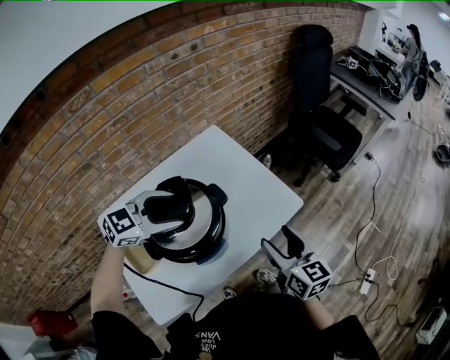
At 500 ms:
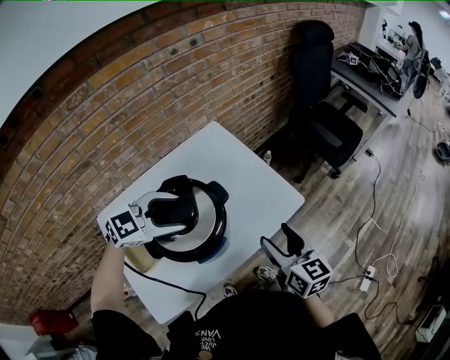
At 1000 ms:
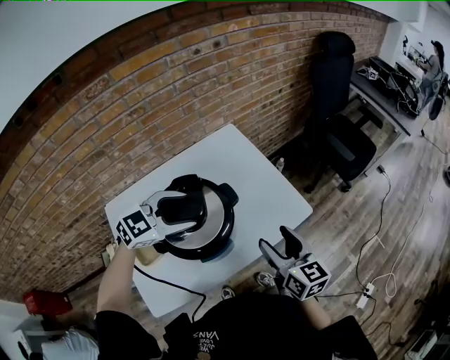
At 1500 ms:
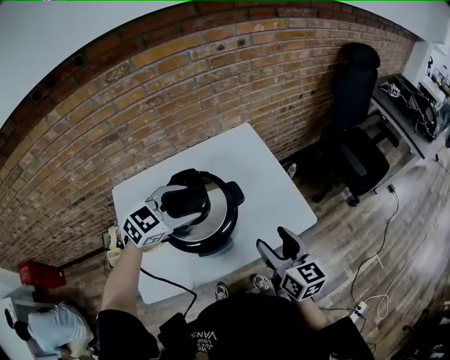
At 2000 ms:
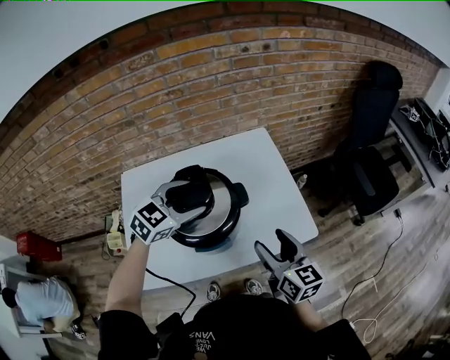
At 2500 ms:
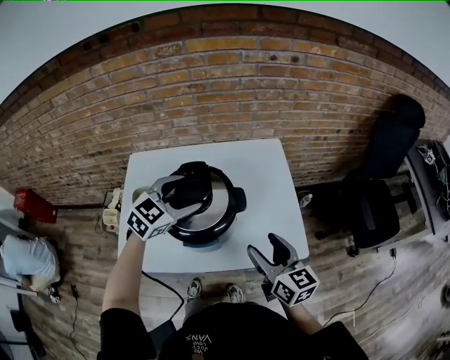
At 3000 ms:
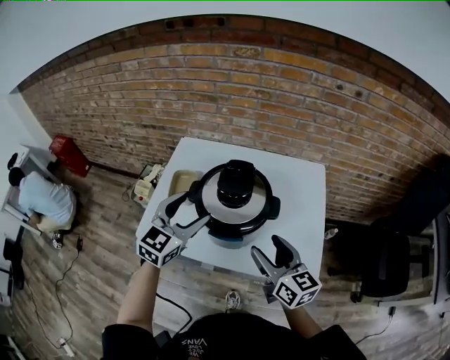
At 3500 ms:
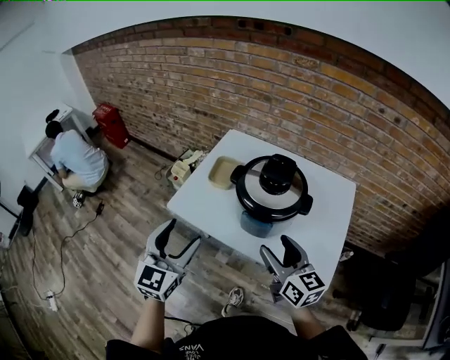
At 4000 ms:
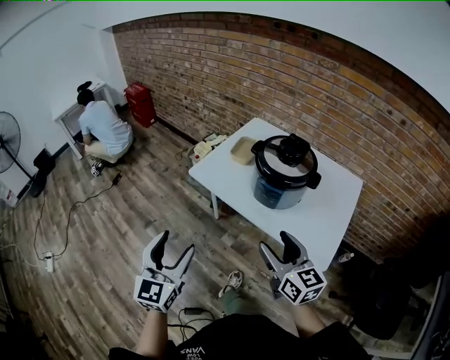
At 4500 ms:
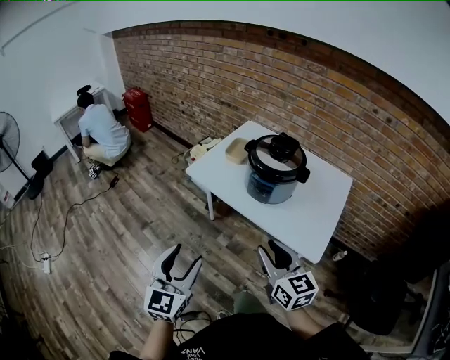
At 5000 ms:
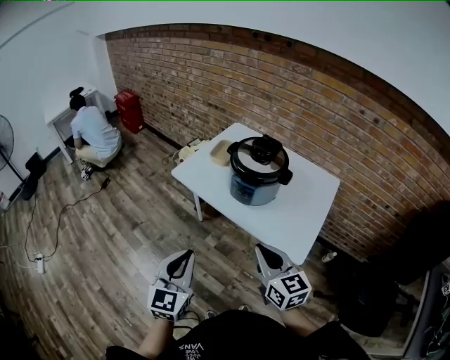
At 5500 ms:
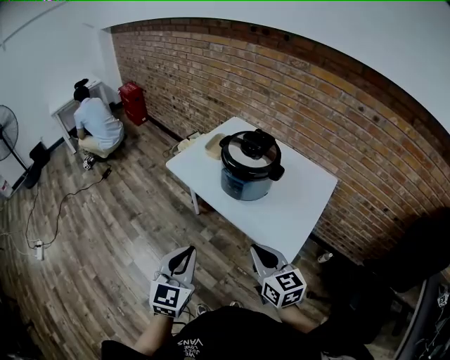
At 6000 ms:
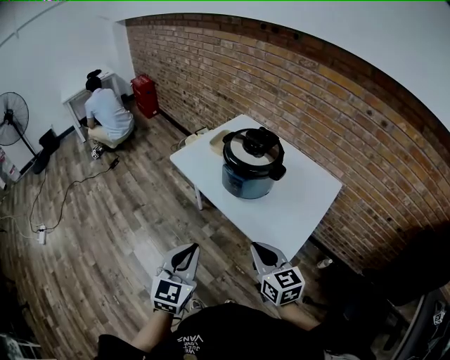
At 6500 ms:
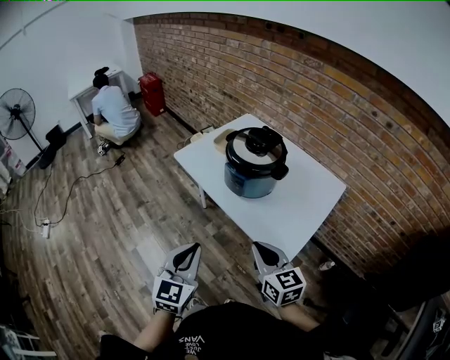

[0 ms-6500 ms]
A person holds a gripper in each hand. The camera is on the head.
0 ms to 2000 ms: The left gripper rotates some 40 degrees. Meanwhile the right gripper shifts by about 5 cm, and turns by about 20 degrees.
2000 ms to 4500 ms: The right gripper shifts by roughly 20 cm, rotates about 50 degrees, and closes up; the left gripper moves some 50 cm, and changes its angle by approximately 90 degrees.
4500 ms to 6500 ms: Both grippers move to the right, roughly 15 cm. The right gripper closes up; the left gripper closes its fingers.

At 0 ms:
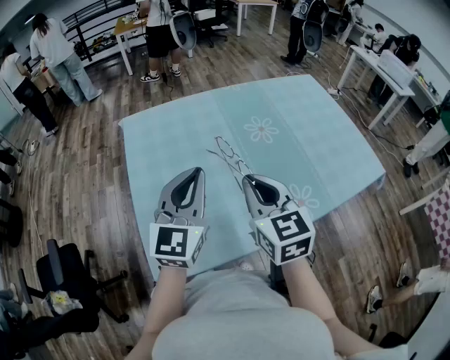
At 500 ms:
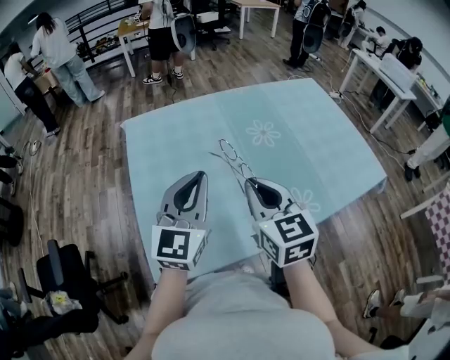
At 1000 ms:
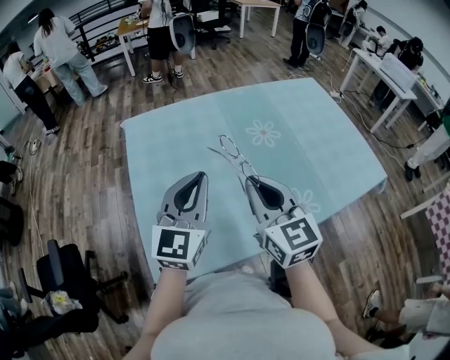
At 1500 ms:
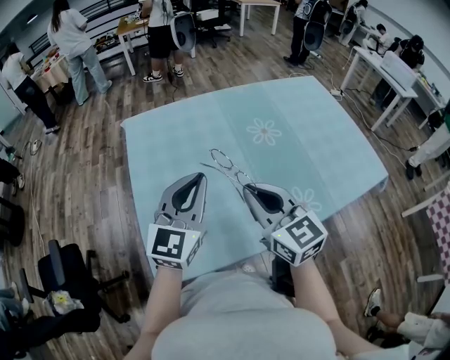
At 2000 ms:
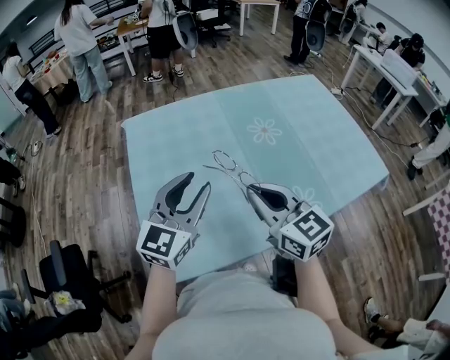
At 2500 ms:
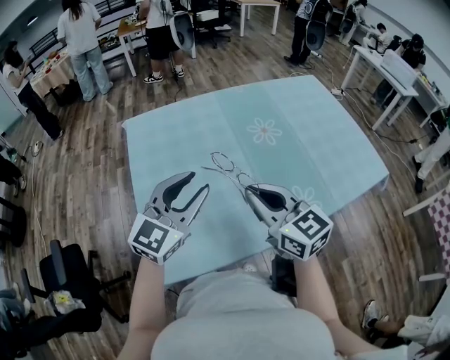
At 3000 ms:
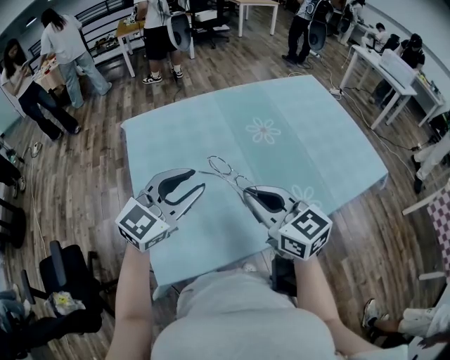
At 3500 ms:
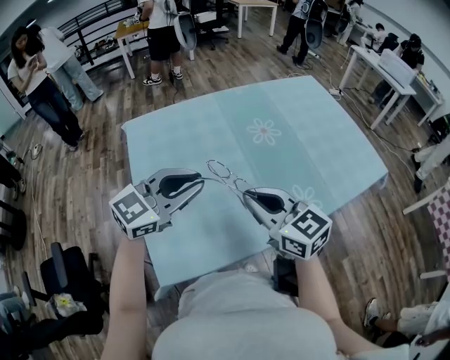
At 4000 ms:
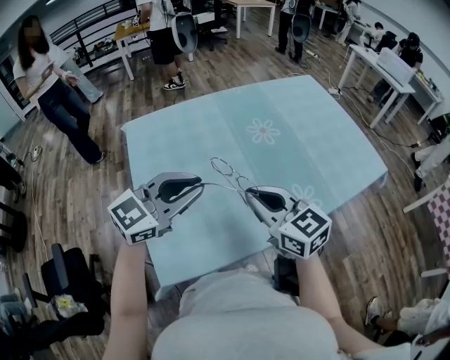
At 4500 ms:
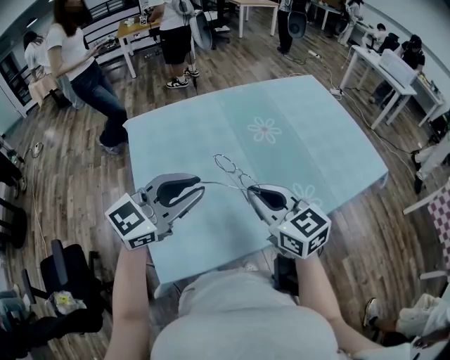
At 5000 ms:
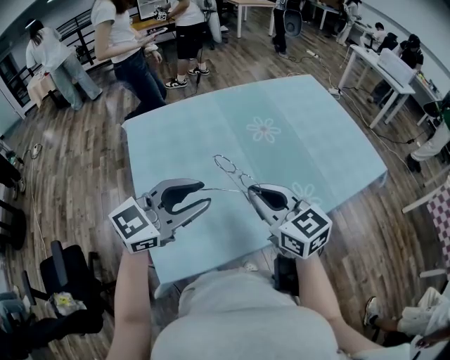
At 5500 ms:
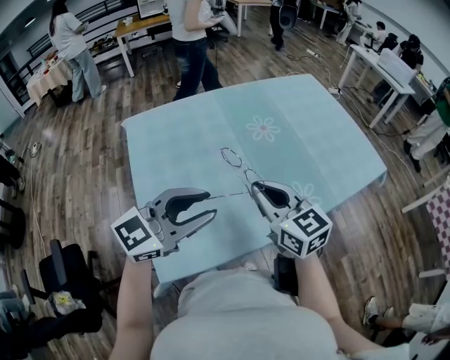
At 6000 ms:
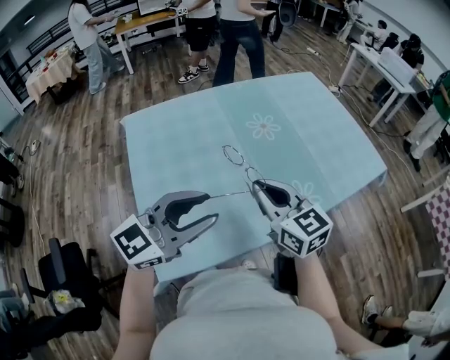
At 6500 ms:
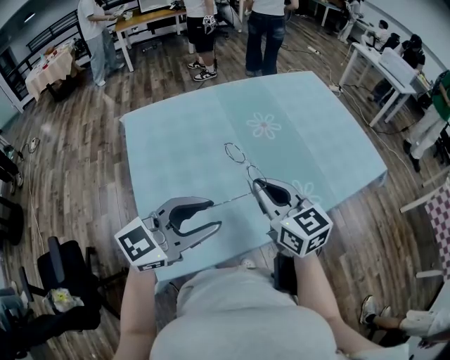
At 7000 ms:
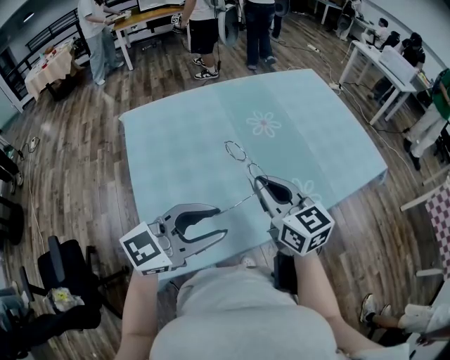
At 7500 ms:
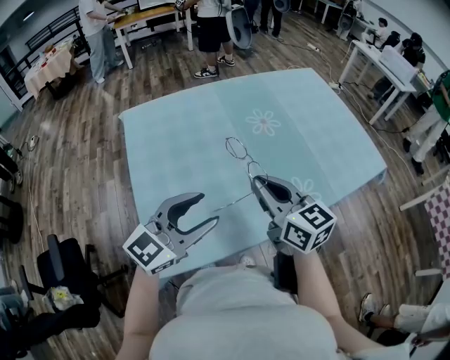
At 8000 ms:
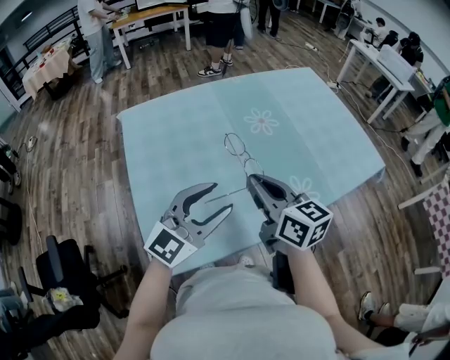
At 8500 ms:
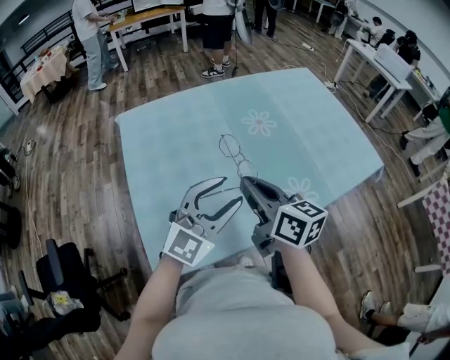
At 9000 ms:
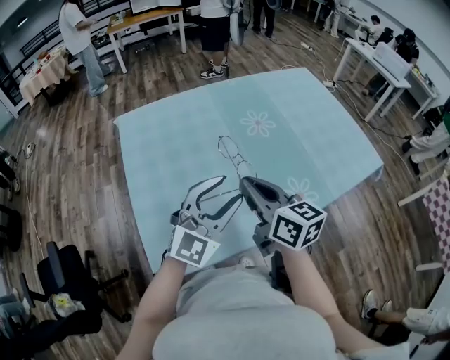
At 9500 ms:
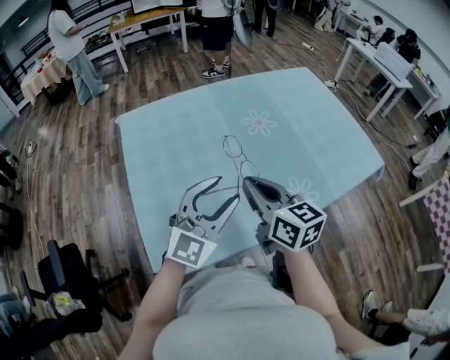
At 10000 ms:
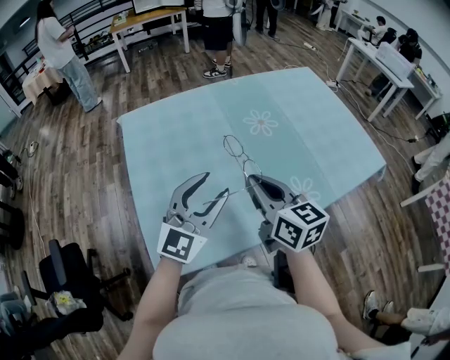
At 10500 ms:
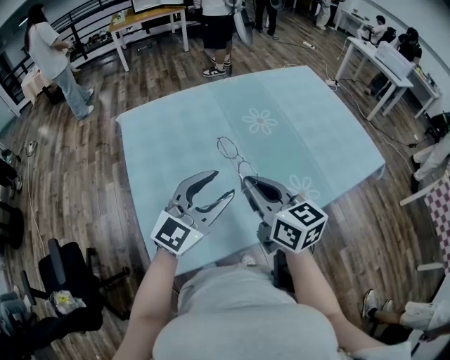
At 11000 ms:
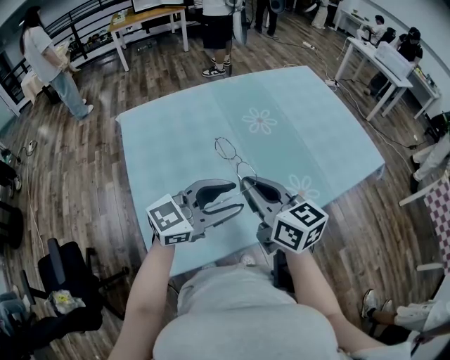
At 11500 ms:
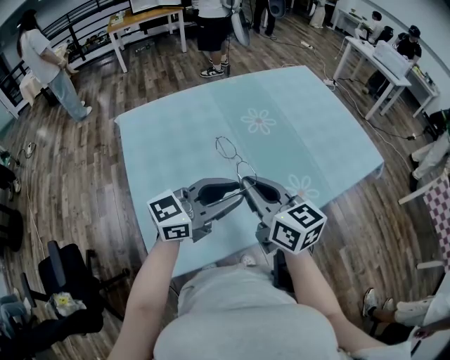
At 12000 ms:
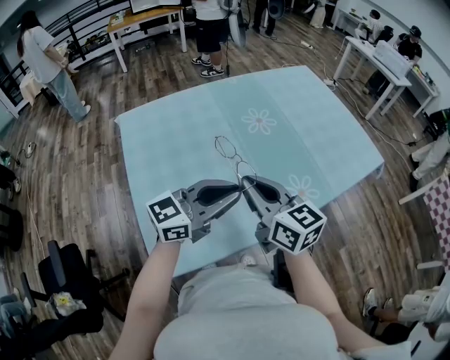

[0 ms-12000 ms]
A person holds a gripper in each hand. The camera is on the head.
0 ms to 2000 ms: The left gripper opens.
2000 ms to 4000 ms: The left gripper rotates approximately 30 degrees, and closes its fingers.
4000 ms to 6000 ms: The left gripper goes some 5 cm backward, and opens.
6000 ms to 8000 ms: The left gripper ends up some 5 cm from where it was.
8000 ms to 10000 ms: The grippers move only a little.
10000 ms to 12000 ms: The left gripper is displaced to the right by approximately 5 cm, swivels approximately 50 degrees, and closes up.

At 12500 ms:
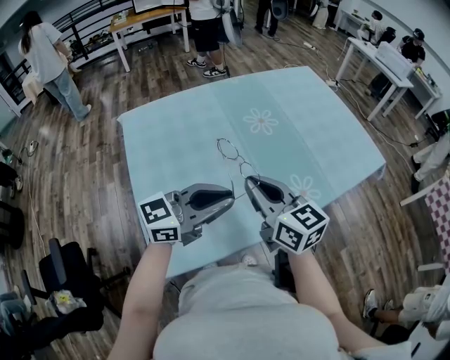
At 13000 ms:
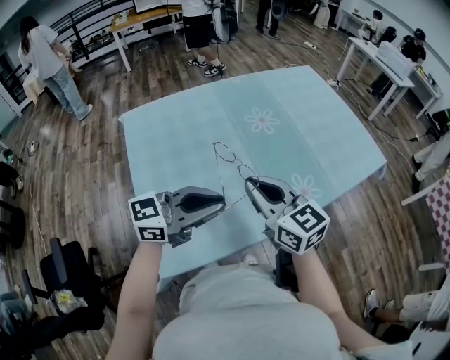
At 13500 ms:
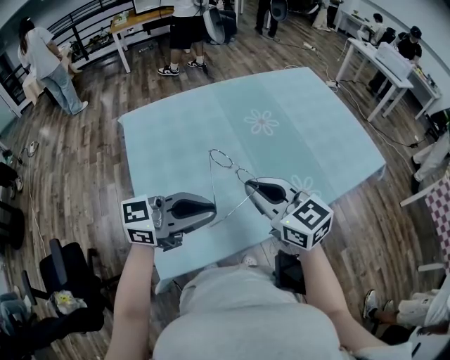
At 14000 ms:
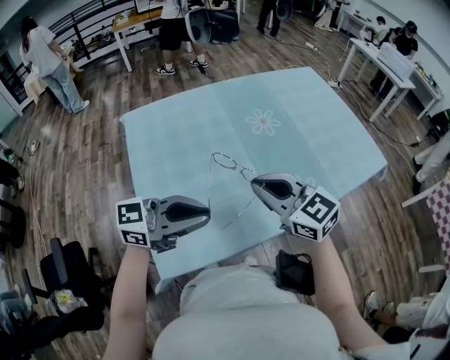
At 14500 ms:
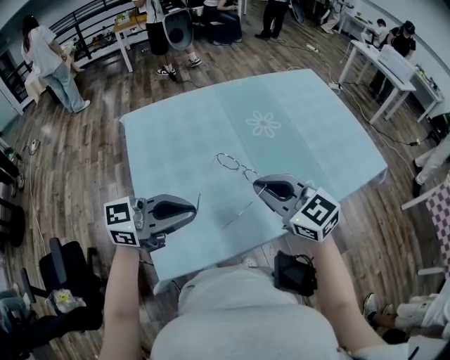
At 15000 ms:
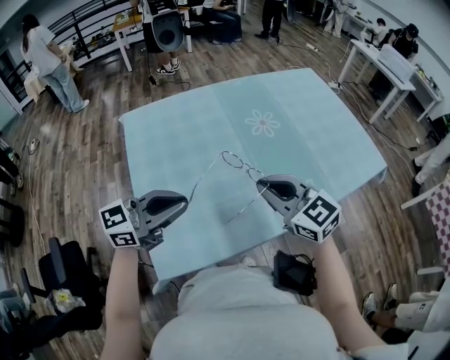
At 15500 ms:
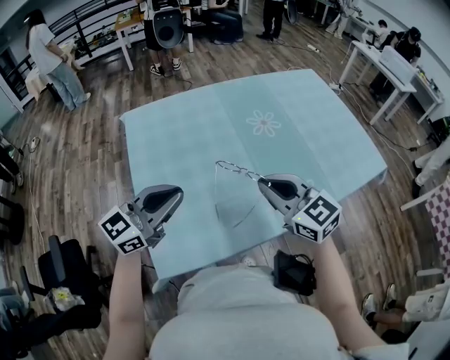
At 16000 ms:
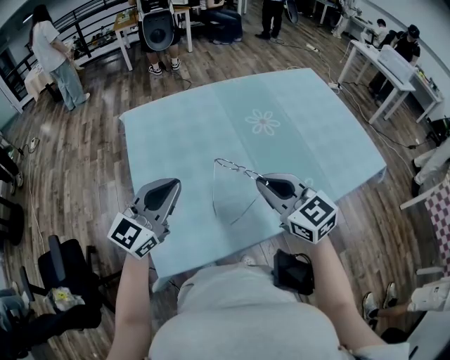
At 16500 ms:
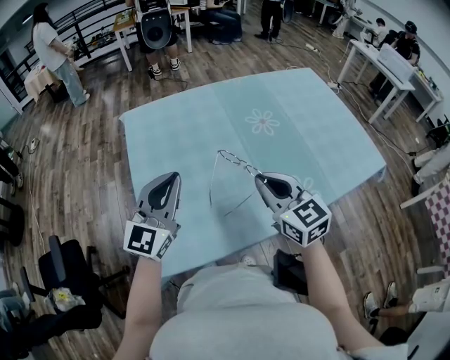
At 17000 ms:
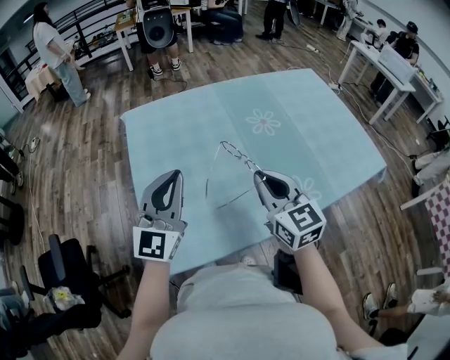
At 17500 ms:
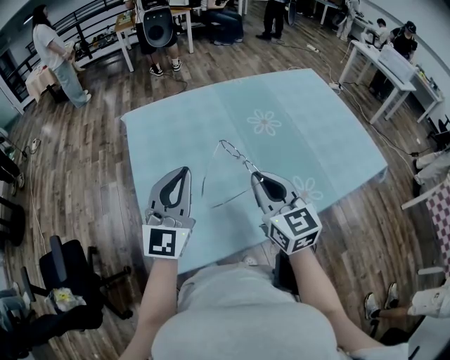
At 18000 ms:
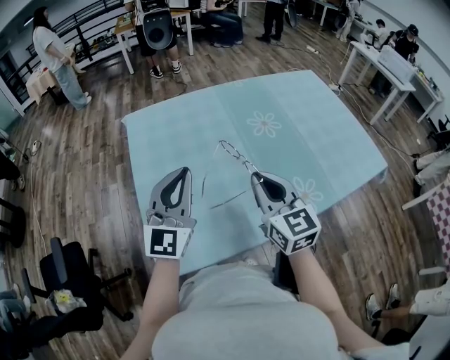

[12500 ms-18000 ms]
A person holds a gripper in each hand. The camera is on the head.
12500 ms to 14500 ms: The right gripper swivels some 30 degrees, while the left gripper ends up some 10 cm from where it was.
14500 ms to 16000 ms: The left gripper changes place by roughly 5 cm, and swivels roughly 50 degrees.
16000 ms to 18000 ms: The left gripper rotates roughly 20 degrees. The right gripper turns by some 20 degrees.

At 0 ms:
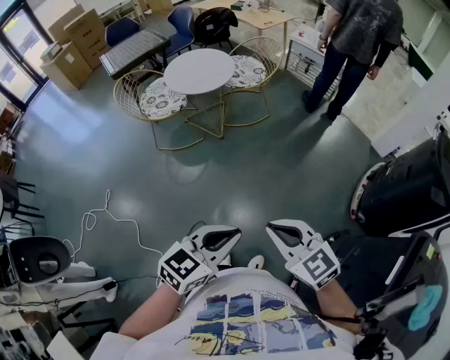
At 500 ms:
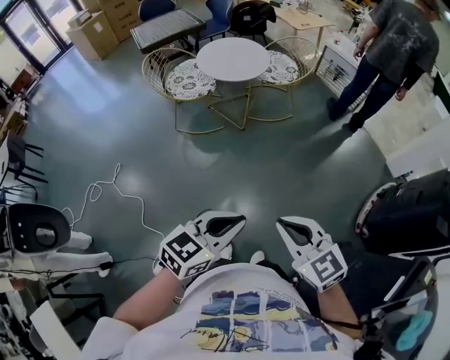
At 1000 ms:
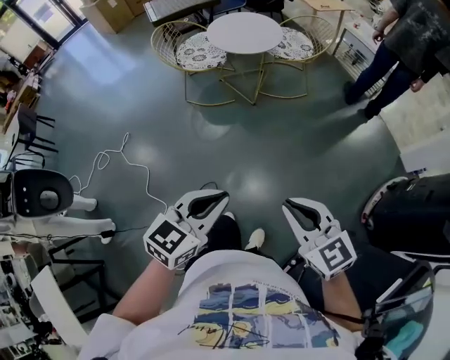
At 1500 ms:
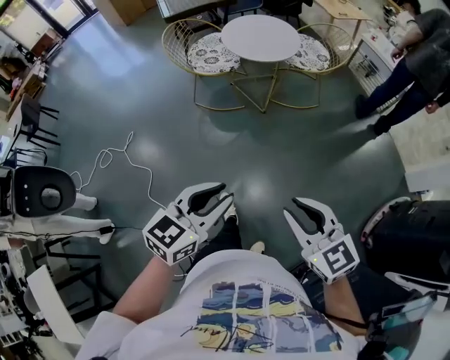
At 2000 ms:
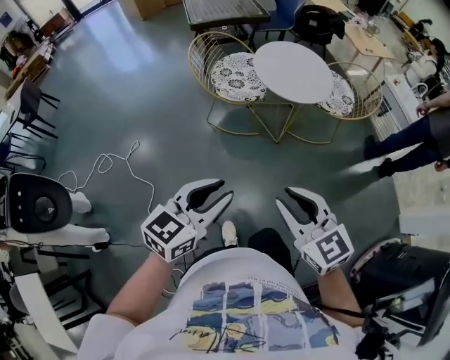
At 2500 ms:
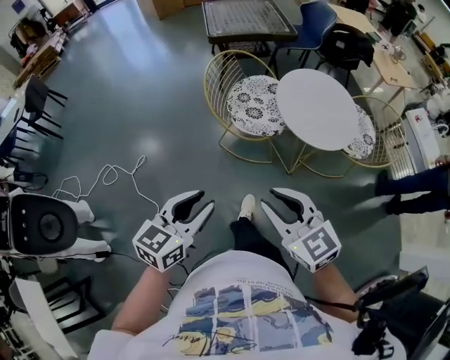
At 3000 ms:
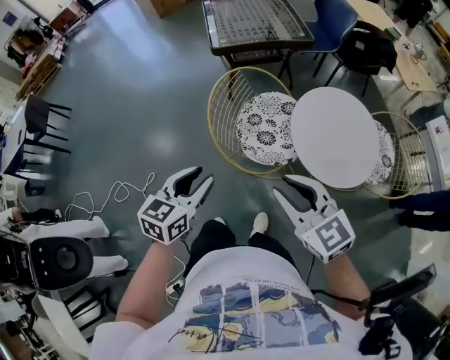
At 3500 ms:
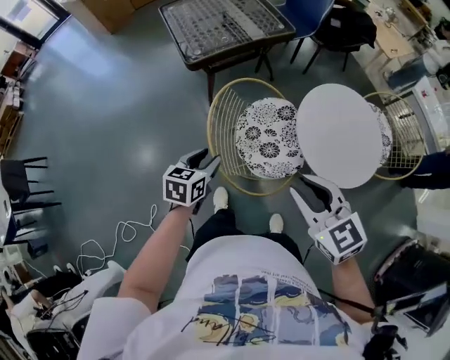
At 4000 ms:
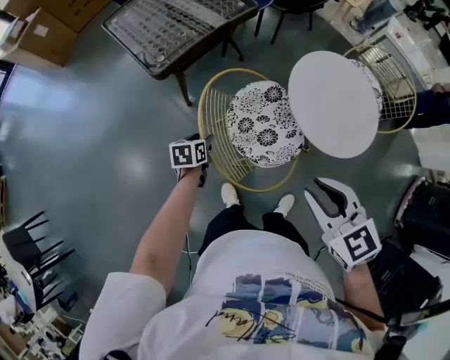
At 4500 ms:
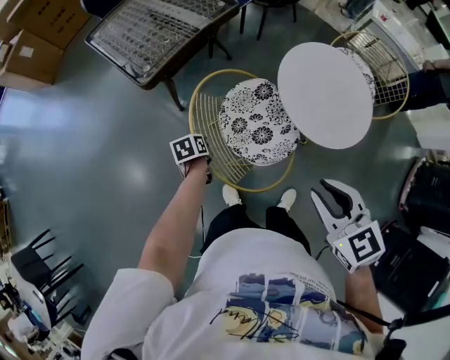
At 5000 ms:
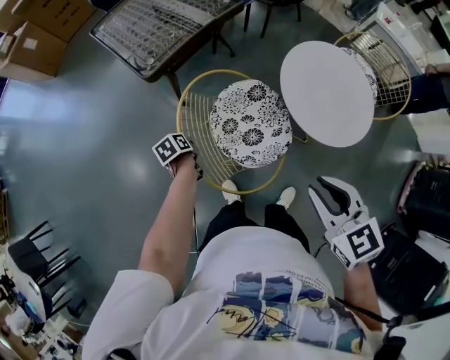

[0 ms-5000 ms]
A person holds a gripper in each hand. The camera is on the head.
0 ms to 2500 ms: Both grippers are carried about 60 cm. The left gripper rotates roughly 40 degrees, and opens up, while the right gripper swivels some 20 degrees.
2500 ms to 5000 ms: The right gripper shifts by some 40 cm, and changes its angle by roughly 50 degrees. Meanwhile the left gripper moves roughly 80 cm, tilts its fingers roughly 40 degrees downward, and closes.
